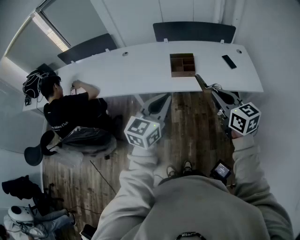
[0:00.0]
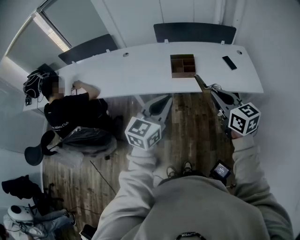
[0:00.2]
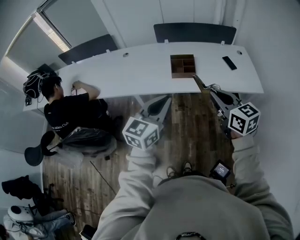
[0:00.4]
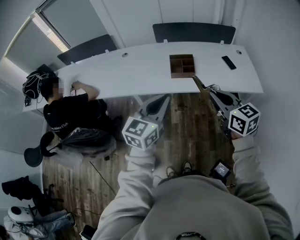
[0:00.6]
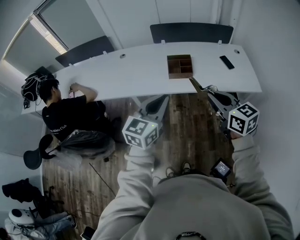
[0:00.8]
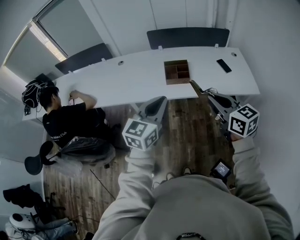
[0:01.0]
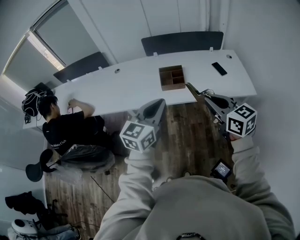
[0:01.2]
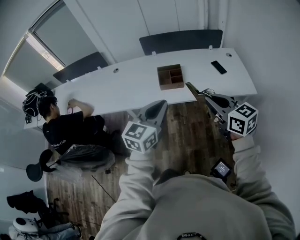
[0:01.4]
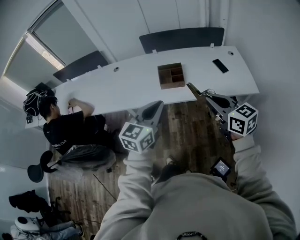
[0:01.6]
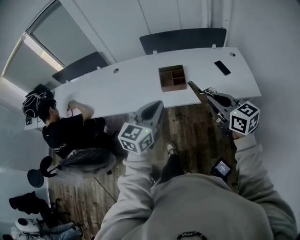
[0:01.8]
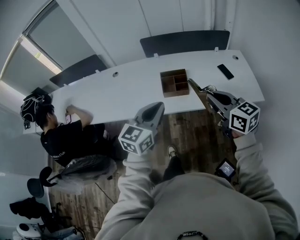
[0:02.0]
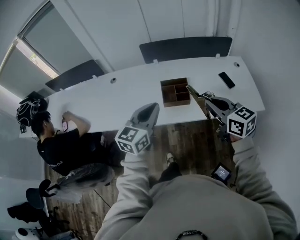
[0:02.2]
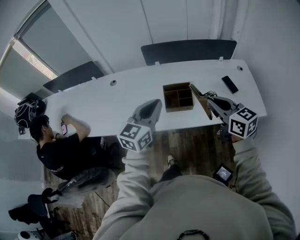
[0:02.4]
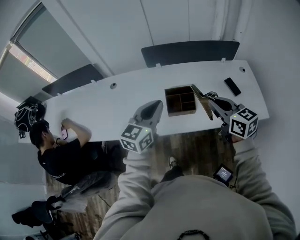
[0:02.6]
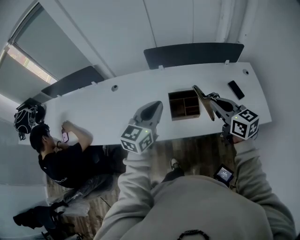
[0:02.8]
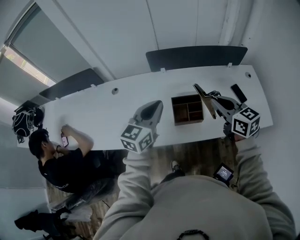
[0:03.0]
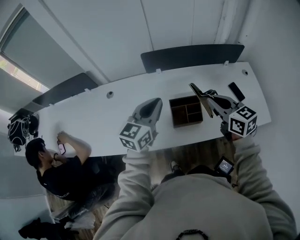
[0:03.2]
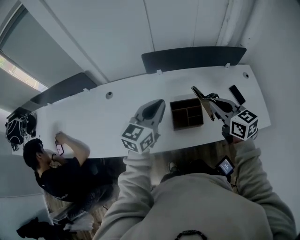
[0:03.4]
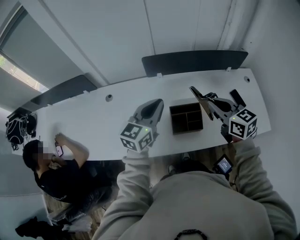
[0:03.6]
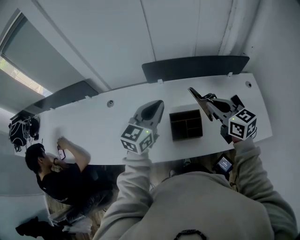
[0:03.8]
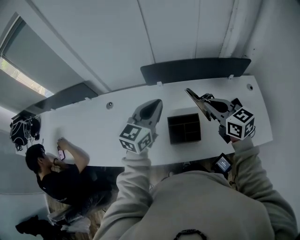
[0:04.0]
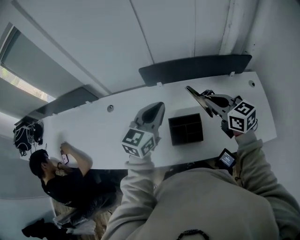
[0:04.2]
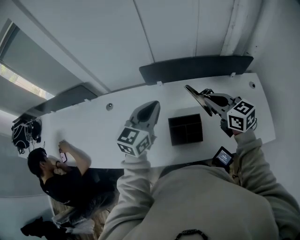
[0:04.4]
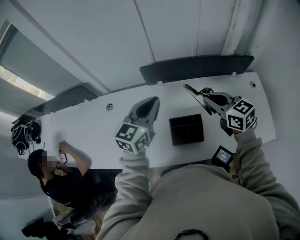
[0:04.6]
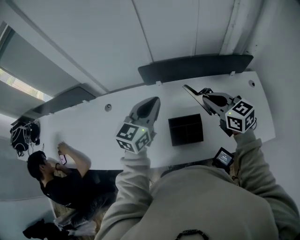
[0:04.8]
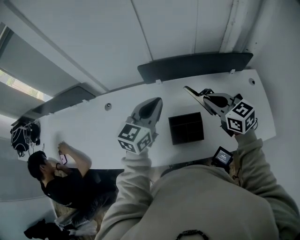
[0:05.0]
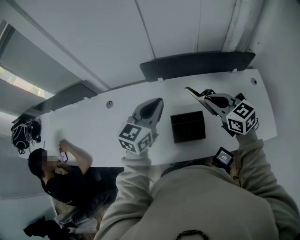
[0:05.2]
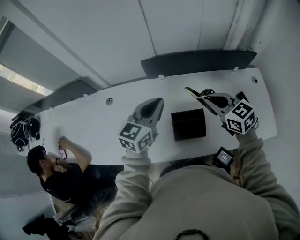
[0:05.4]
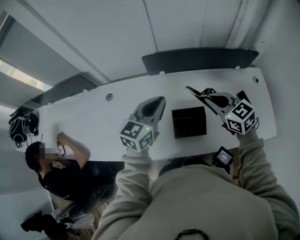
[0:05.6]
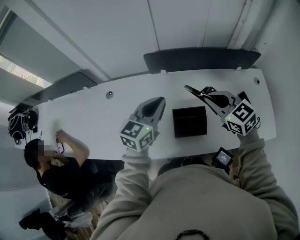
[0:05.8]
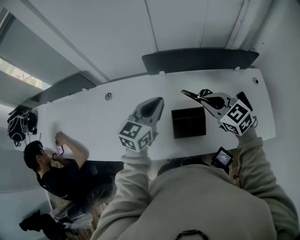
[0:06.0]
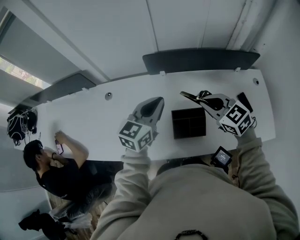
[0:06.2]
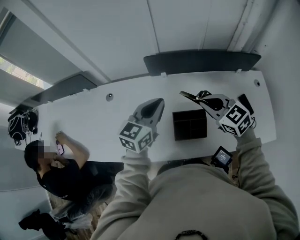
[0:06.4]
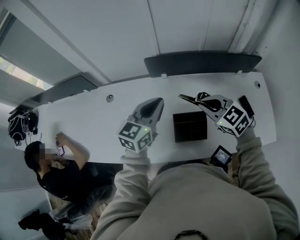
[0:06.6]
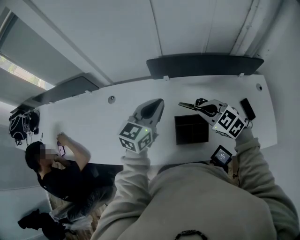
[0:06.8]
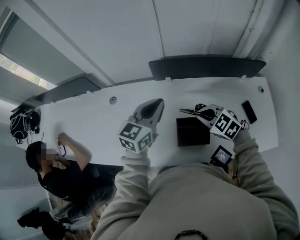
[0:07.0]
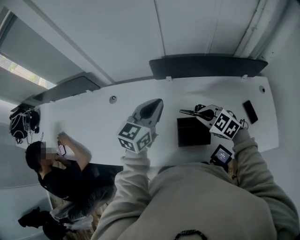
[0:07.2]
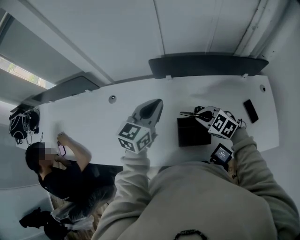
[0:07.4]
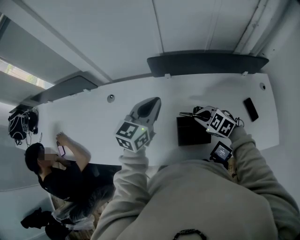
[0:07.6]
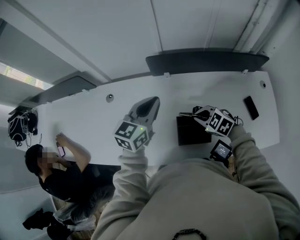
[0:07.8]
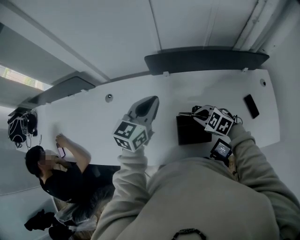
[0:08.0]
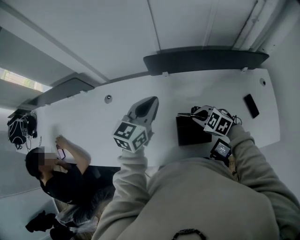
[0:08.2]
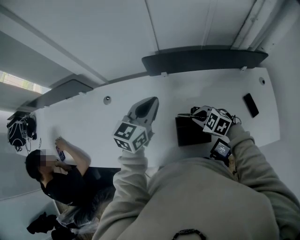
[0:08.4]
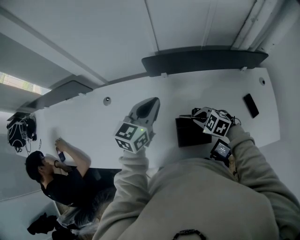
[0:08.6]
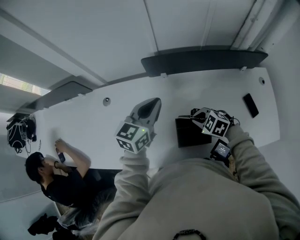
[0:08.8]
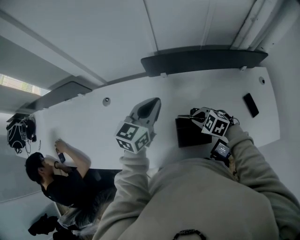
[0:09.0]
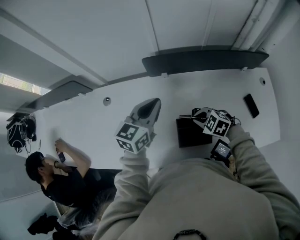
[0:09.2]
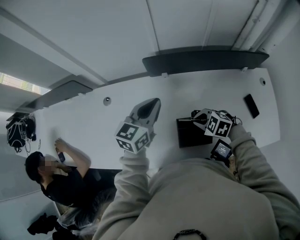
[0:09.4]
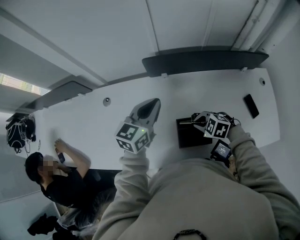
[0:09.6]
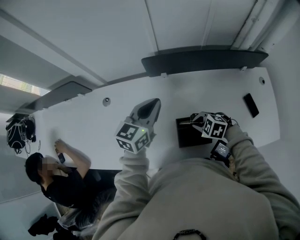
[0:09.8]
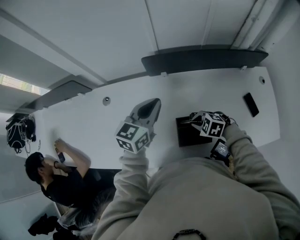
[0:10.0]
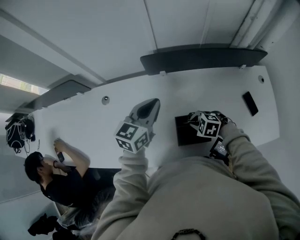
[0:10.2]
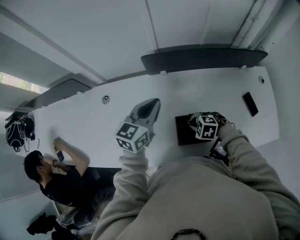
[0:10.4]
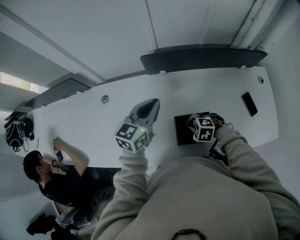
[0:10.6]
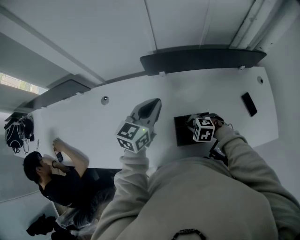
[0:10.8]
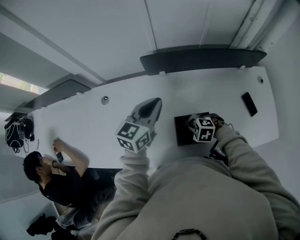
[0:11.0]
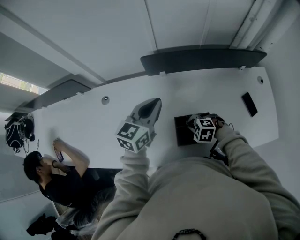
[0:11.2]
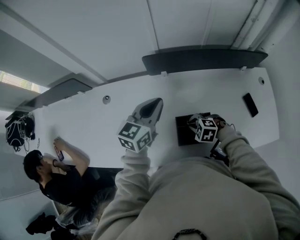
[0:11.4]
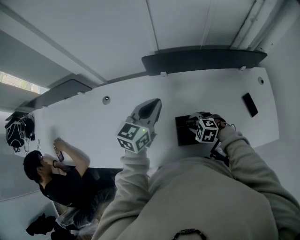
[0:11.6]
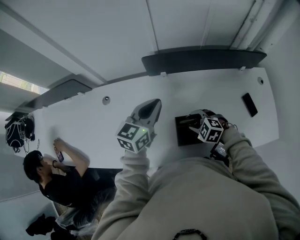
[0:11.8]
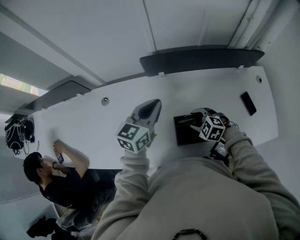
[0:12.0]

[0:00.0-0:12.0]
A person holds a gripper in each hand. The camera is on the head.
0.0 to 1.6 s: The right gripper moves to the right, roughly 5 cm. The left gripper heads to the right and forward, covering roughly 10 cm.
1.6 to 3.0 s: Both grippers travel together forward, about 35 cm.
3.0 to 4.4 s: Both grippers travel together forward, about 15 cm.
4.4 to 6.0 s: The right gripper moves roughly 5 cm, and rotates about 20 degrees.
6.0 to 7.6 s: The right gripper goes approximately 15 cm downward, and rotates some 20 degrees. The left gripper heads forward, covering roughly 5 cm.
7.6 to 9.0 s: There are only small adjustments of the grippers.
9.0 to 10.4 s: The right gripper heads downward, covering approximately 5 cm.
10.4 to 12.0 s: The right gripper opens.

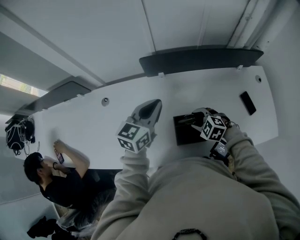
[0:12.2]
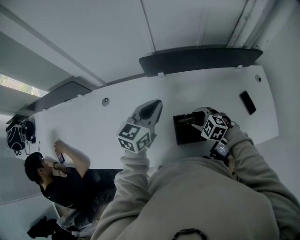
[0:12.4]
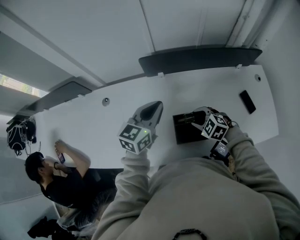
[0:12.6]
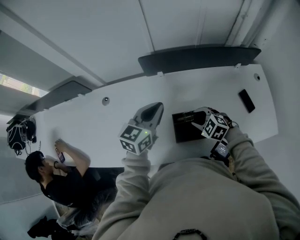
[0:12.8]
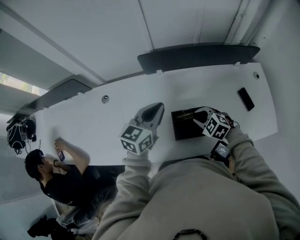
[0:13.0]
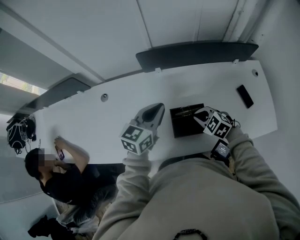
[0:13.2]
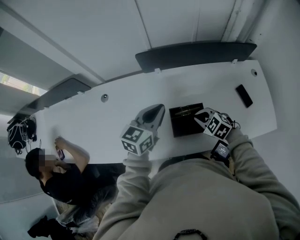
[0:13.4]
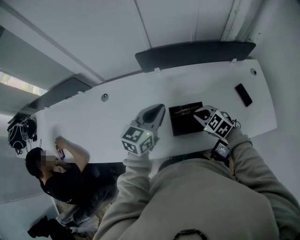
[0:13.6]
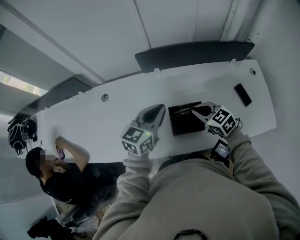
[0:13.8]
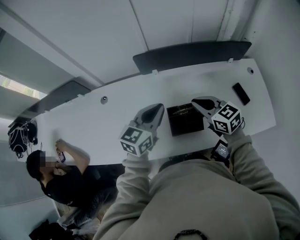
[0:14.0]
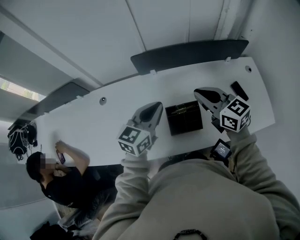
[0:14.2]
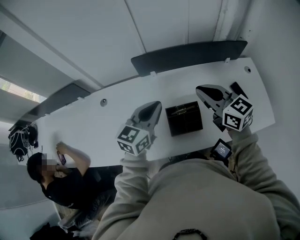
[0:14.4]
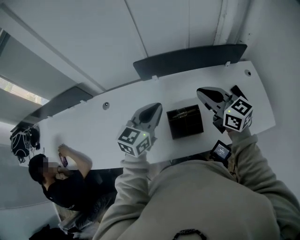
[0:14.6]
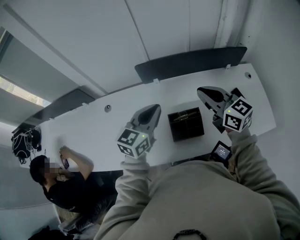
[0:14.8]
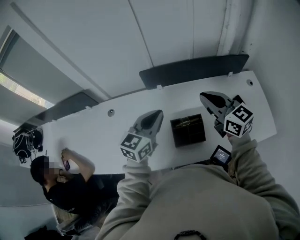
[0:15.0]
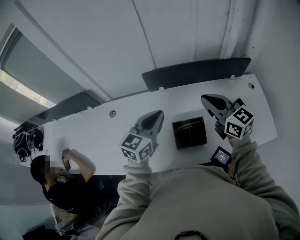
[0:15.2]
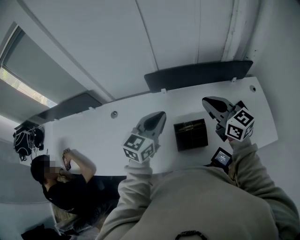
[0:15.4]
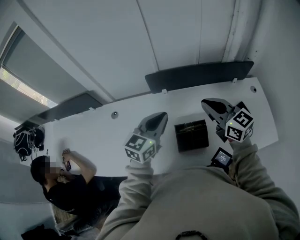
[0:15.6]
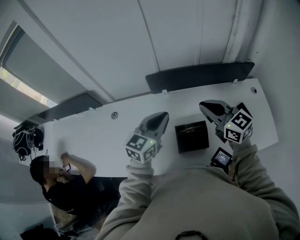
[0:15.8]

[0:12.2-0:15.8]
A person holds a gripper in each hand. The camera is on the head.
12.2 to 14.0 s: The left gripper moves backward, approximately 10 cm, while the right gripper heads upward, covering approximately 15 cm, points its fingers about 30 degrees further upward, and closes up.
14.0 to 15.8 s: The left gripper changes place by about 5 cm, while the right gripper travels upward by about 10 cm.

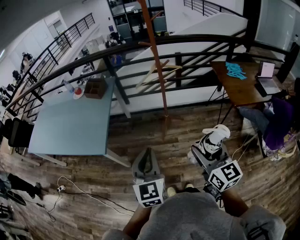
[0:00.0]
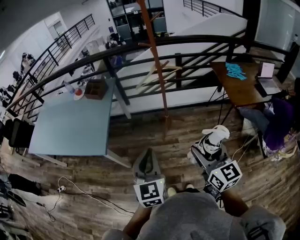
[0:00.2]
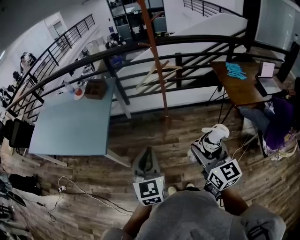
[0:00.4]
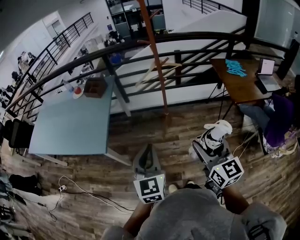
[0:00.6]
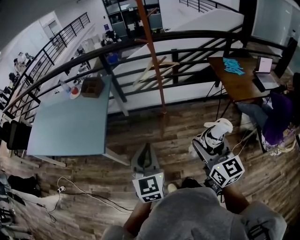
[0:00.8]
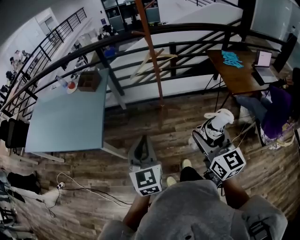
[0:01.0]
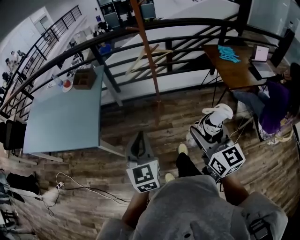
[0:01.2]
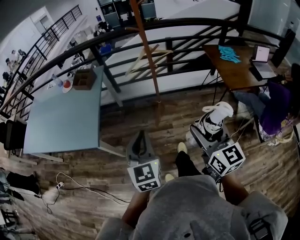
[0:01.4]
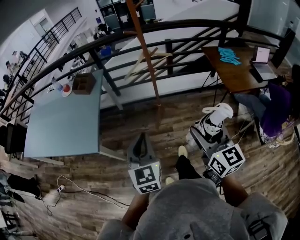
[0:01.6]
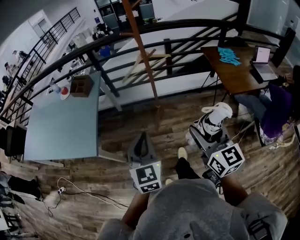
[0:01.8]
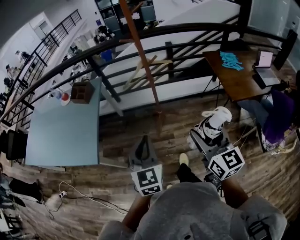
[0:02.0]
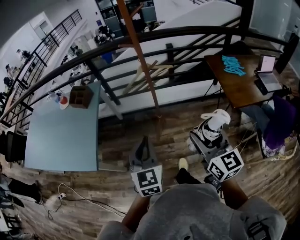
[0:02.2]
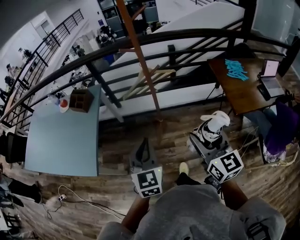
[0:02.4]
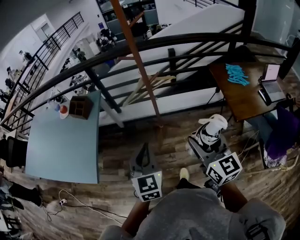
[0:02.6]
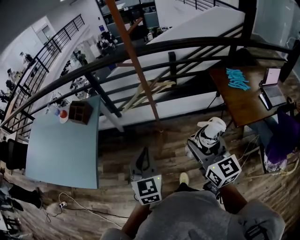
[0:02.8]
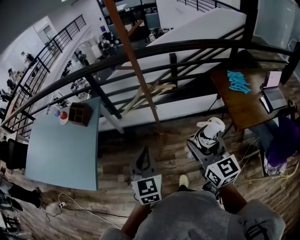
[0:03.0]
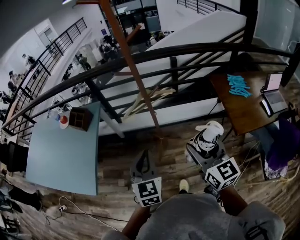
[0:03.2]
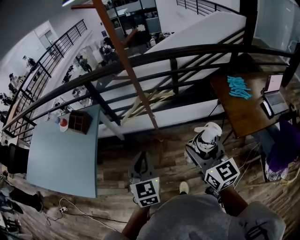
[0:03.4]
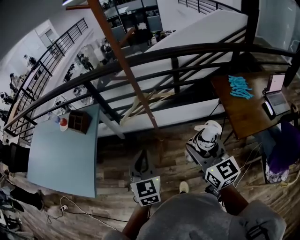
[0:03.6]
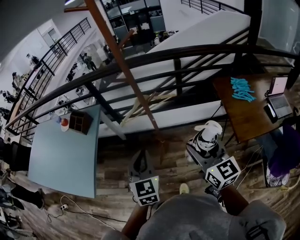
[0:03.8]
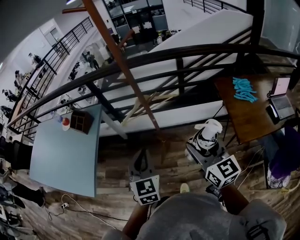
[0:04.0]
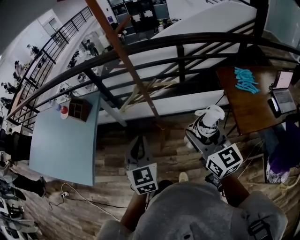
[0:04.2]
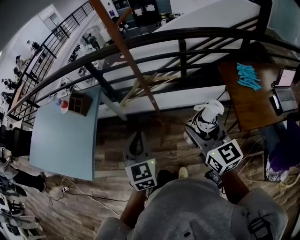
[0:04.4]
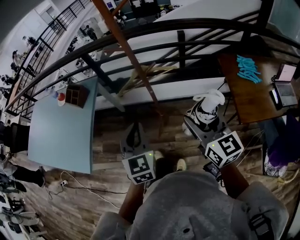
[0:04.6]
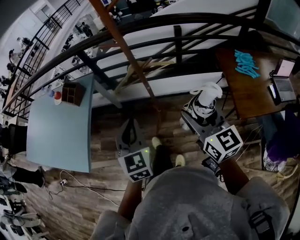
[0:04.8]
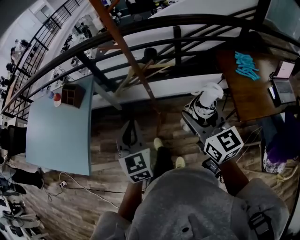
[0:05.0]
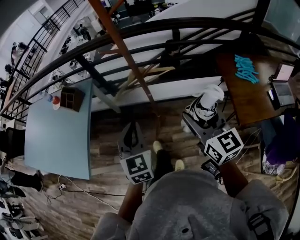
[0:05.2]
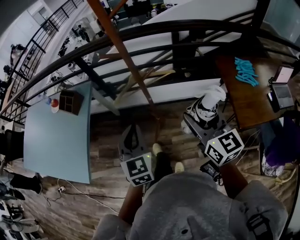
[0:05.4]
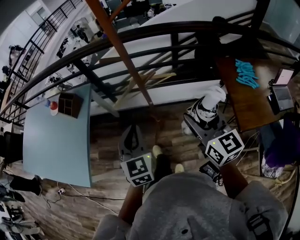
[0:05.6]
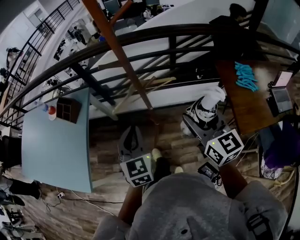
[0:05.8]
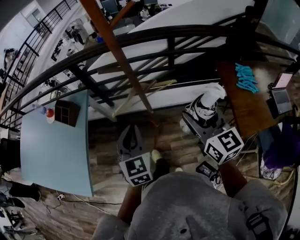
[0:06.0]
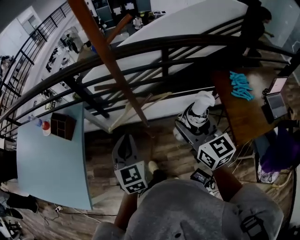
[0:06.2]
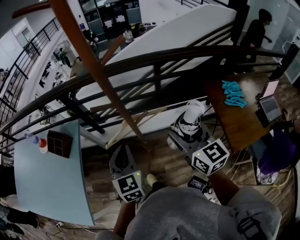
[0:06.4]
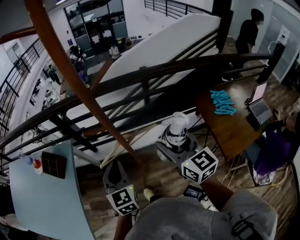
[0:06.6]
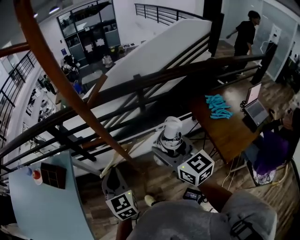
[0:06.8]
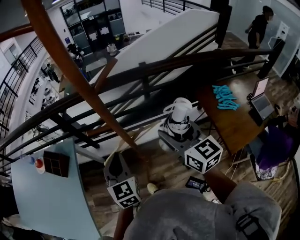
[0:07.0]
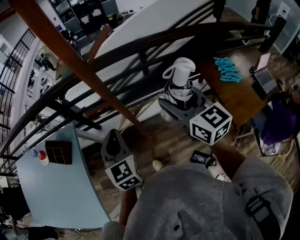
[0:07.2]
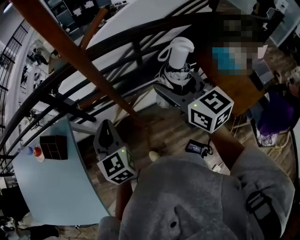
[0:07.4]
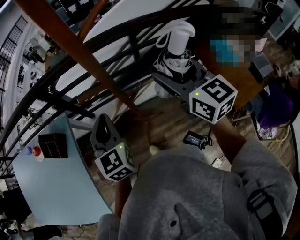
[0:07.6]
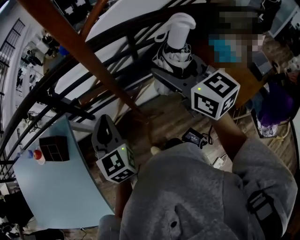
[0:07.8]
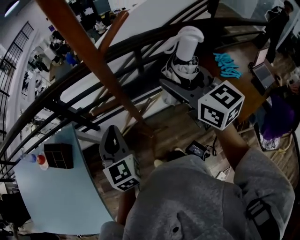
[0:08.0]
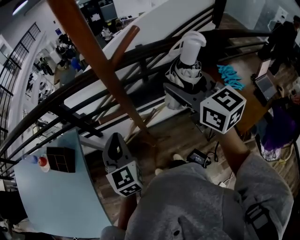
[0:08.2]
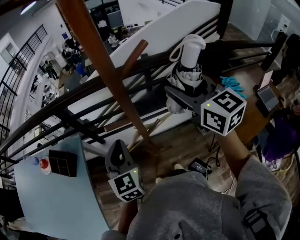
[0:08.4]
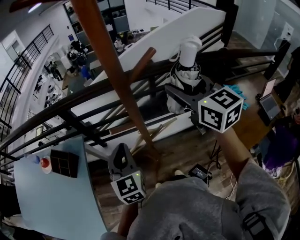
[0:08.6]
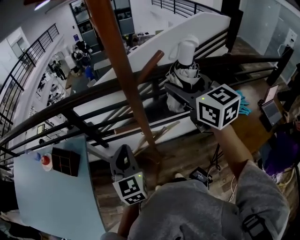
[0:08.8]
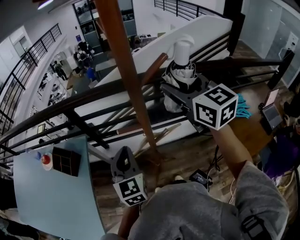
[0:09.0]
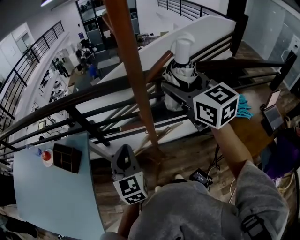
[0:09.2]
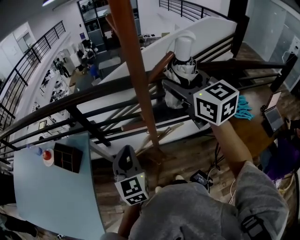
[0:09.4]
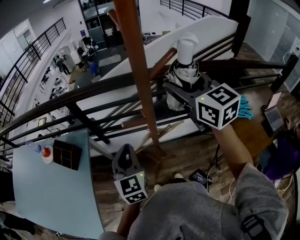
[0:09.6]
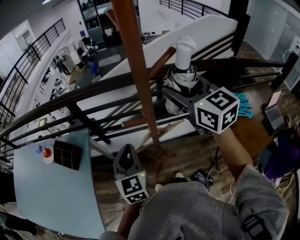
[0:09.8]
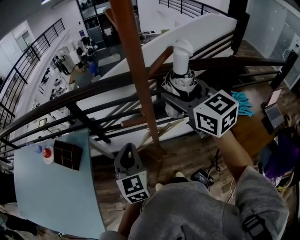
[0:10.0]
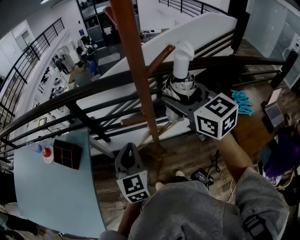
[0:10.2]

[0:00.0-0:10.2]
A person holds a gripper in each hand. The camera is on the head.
0.0 to 1.4 s: The grippers move only a little.
1.4 to 3.0 s: The left gripper is displaced forward and to the right by some 25 cm; the right gripper shifts some 25 cm forward.
3.0 to 4.4 s: The left gripper moves forward, roughly 5 cm. The right gripper heads forward and to the right, covering some 10 cm.
4.4 to 5.8 s: Both grippers move forward, about 10 cm.
5.8 to 7.2 s: Both grippers travel together forward, about 15 cm.
7.2 to 8.8 s: The right gripper moves forward and upward, approximately 15 cm, while the left gripper moves some 5 cm.
8.8 to 10.2 s: The right gripper shifts approximately 5 cm to the left.
